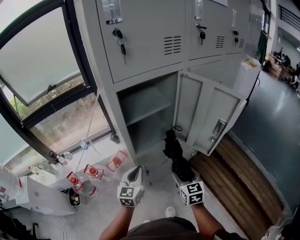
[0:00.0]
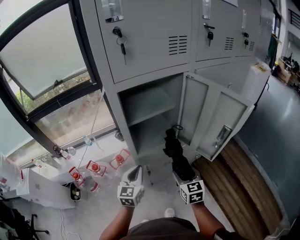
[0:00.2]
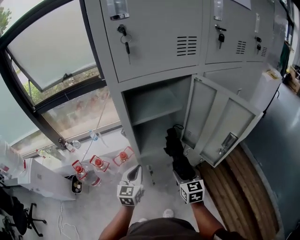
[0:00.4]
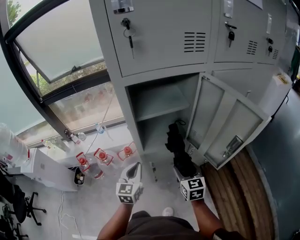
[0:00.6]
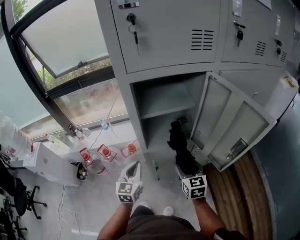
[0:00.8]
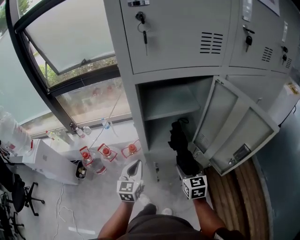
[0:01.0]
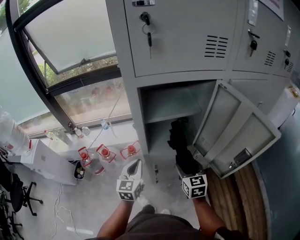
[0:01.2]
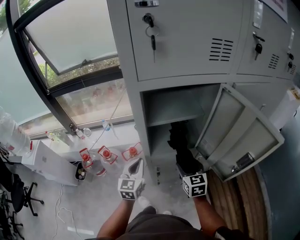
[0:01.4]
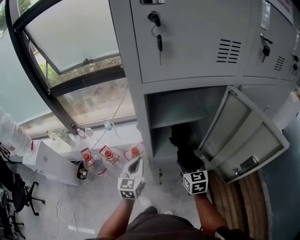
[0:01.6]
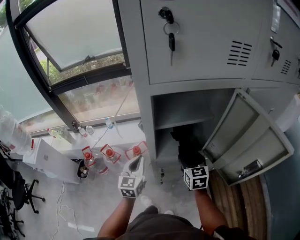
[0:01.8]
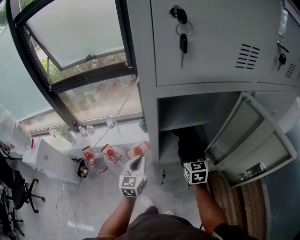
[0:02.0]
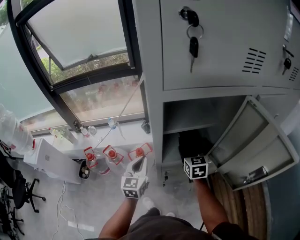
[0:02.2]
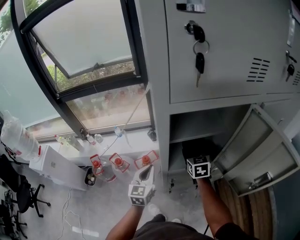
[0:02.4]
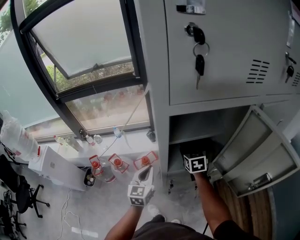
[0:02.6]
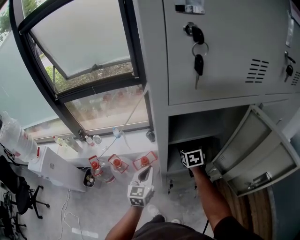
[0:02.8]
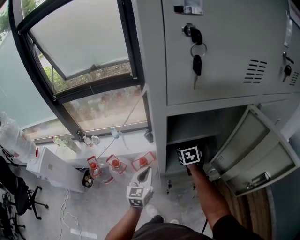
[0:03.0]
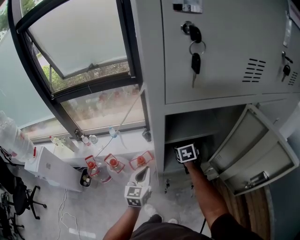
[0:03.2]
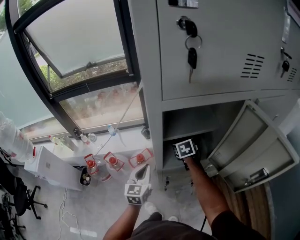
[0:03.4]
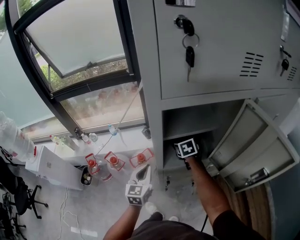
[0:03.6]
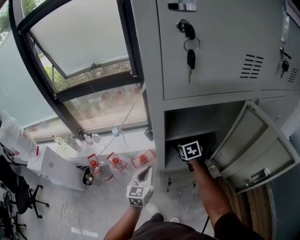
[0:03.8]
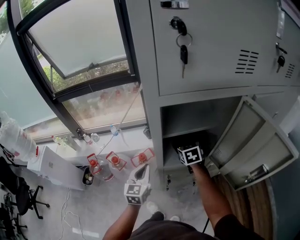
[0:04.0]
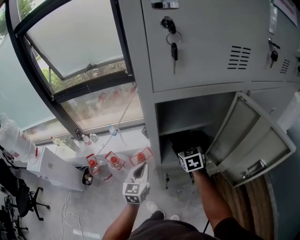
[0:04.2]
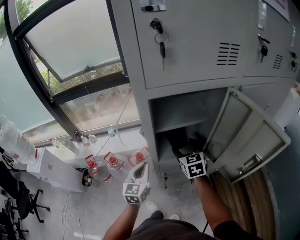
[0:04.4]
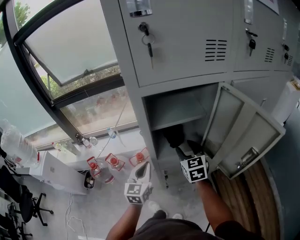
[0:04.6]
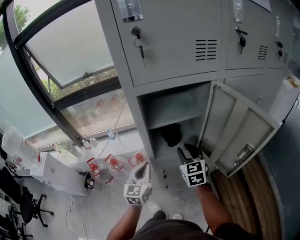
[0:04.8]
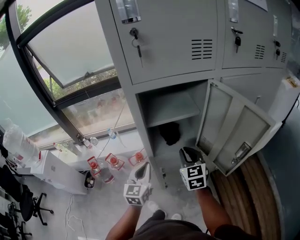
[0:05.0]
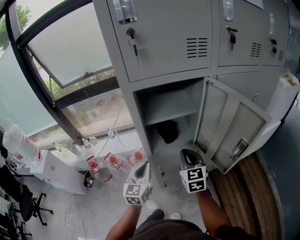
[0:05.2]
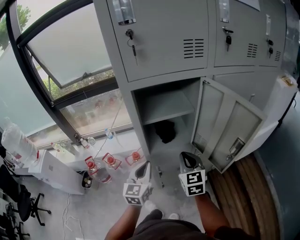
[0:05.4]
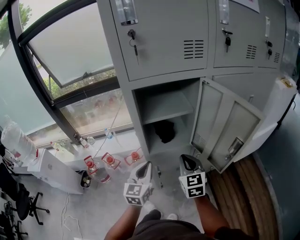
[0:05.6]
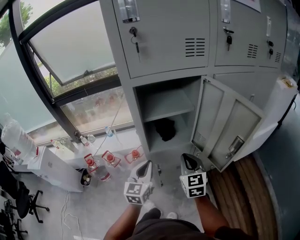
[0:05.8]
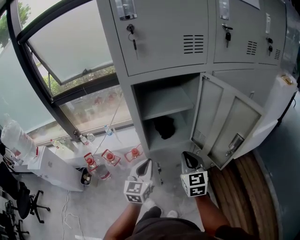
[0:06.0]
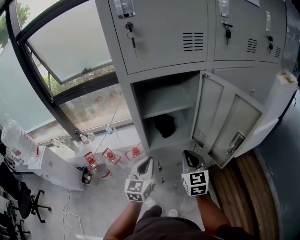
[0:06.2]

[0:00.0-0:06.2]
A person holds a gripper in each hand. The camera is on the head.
0:00.0 to 0:01.6: The left gripper heads forward and to the left, covering approximately 10 cm, and changes its angle by roughly 20 degrees, while the right gripper moves forward, about 15 cm.
0:01.6 to 0:03.2: The right gripper travels forward by approximately 20 cm.
0:03.2 to 0:04.6: The left gripper goes roughly 5 cm backward. Meanwhile the right gripper is displaced backward and upward by about 15 cm.
0:04.6 to 0:06.2: The left gripper shifts approximately 10 cm to the right and backward. The right gripper moves backward and to the right, some 15 cm, and closes.

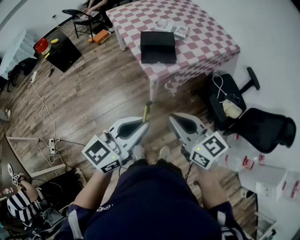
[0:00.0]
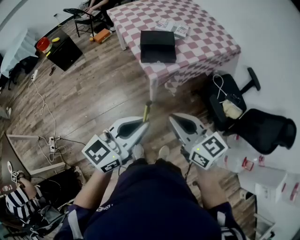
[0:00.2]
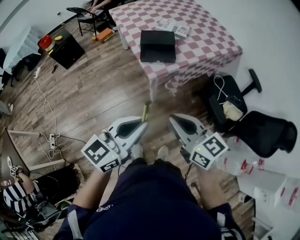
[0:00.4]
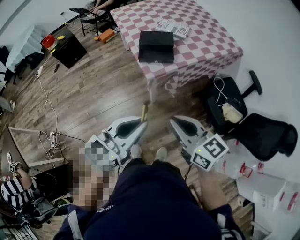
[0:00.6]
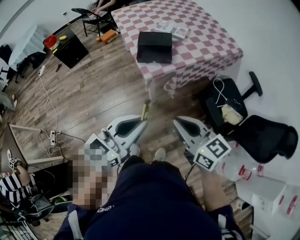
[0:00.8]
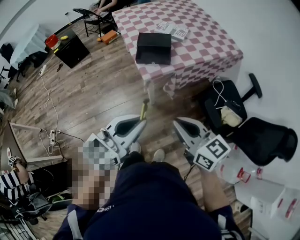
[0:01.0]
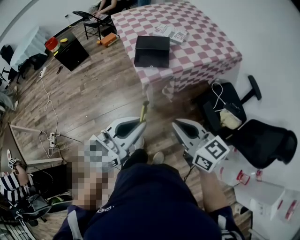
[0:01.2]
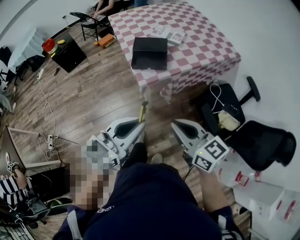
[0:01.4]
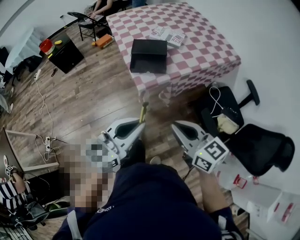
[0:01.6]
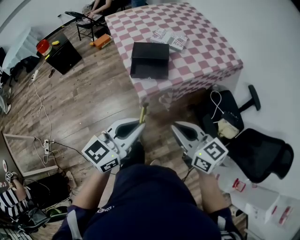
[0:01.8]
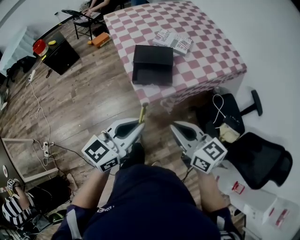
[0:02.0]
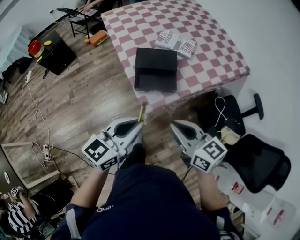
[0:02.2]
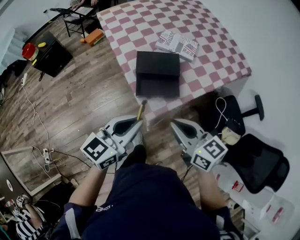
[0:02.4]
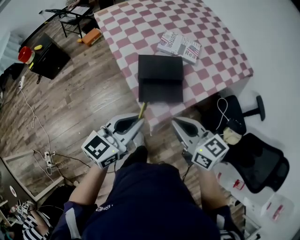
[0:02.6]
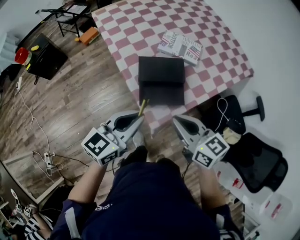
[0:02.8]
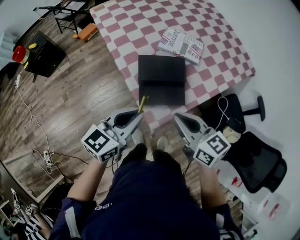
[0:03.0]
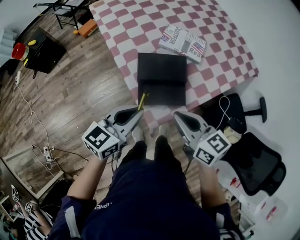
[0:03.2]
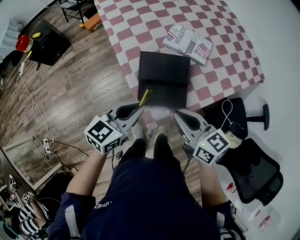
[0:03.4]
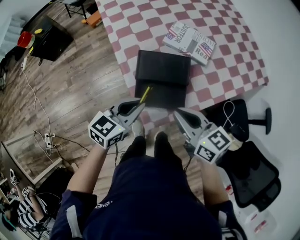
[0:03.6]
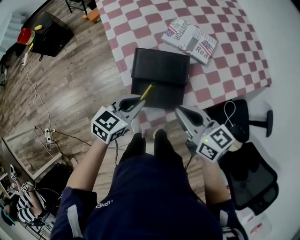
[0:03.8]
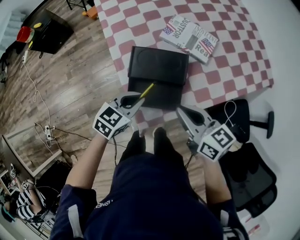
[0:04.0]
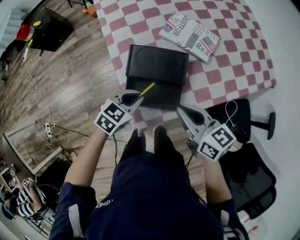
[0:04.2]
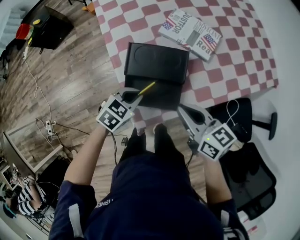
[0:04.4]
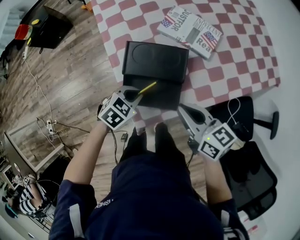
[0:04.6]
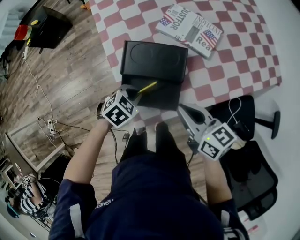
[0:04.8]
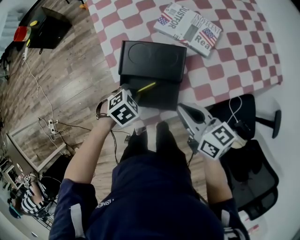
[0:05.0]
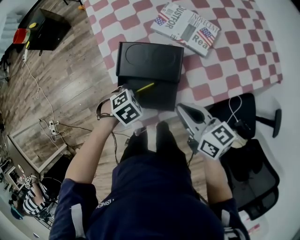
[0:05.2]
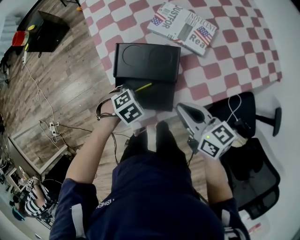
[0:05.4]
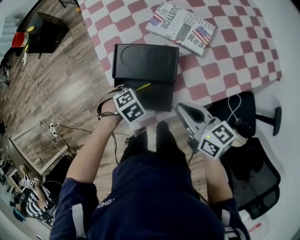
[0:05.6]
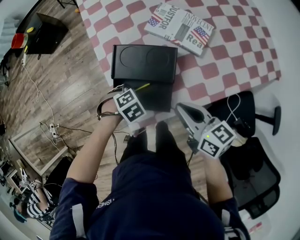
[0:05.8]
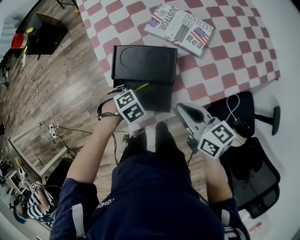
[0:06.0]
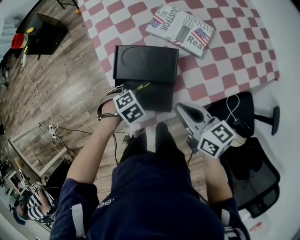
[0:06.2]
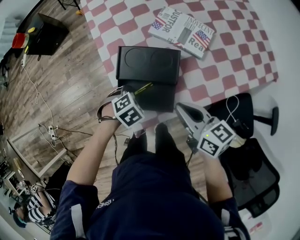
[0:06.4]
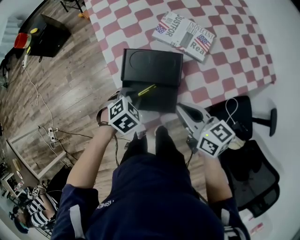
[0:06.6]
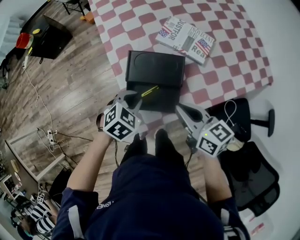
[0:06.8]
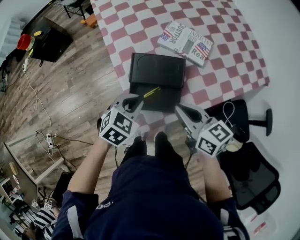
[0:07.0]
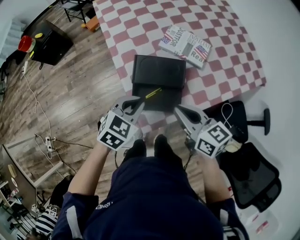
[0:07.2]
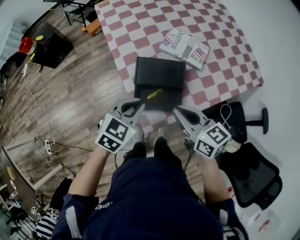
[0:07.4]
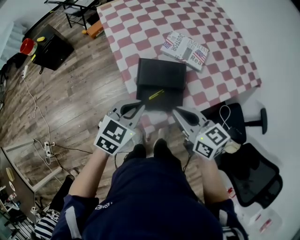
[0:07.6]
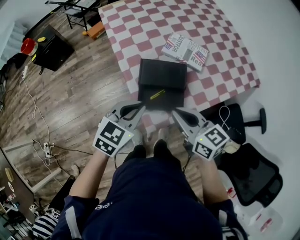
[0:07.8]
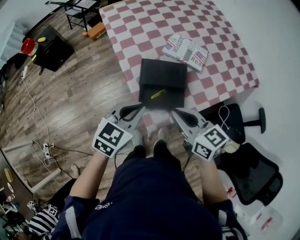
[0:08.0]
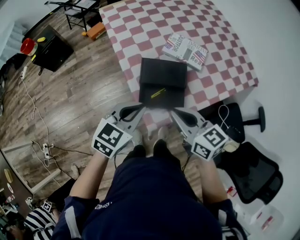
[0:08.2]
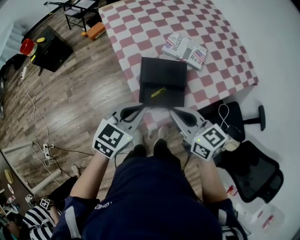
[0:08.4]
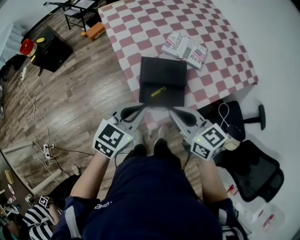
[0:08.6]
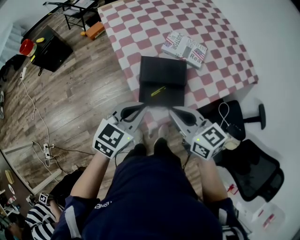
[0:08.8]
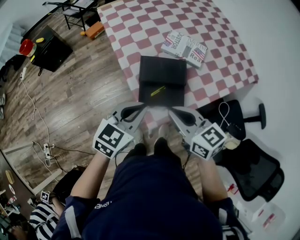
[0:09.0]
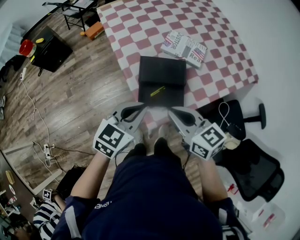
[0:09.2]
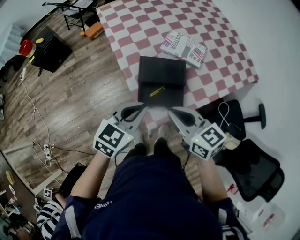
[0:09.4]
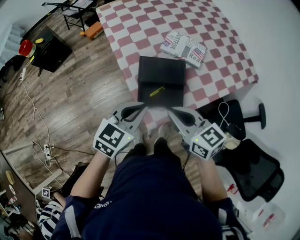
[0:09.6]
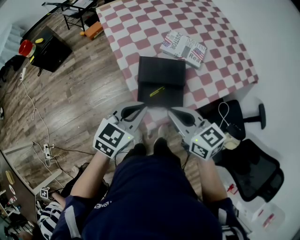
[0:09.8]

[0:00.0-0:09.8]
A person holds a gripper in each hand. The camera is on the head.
0:00.0 to 0:01.4: Both grippers move to the right, approximately 10 cm.
0:01.4 to 0:02.8: The grippers both shift forward by about 35 cm.
0:02.8 to 0:04.2: The right gripper shifts about 15 cm forward, to the right and downward; the left gripper goes some 20 cm downward and forward, and tilts its fingers about 30 degrees downward.
0:04.2 to 0:05.6: The right gripper shifts by roughly 5 cm. The left gripper travels downward by approximately 10 cm, and angles its fingers downward, by roughly 40 degrees.
0:05.6 to 0:07.0: The left gripper shifts approximately 15 cm upward, and angles its fingers upward, by some 40 degrees. The right gripper goes about 5 cm upward.
0:07.0 to 0:08.4: The right gripper heads to the left, upward and backward, covering some 10 cm. Meanwhile the left gripper moves upward and backward, approximately 15 cm, and changes its angle by some 30 degrees.
0:08.4 to 0:09.8: Both grippers stay about where they are.

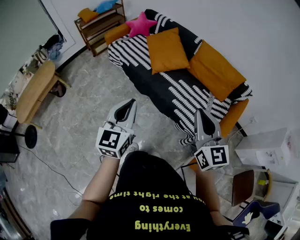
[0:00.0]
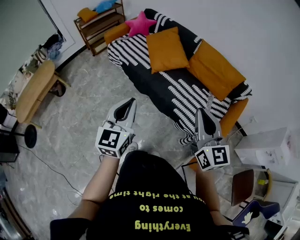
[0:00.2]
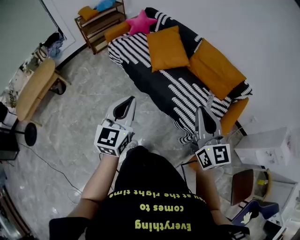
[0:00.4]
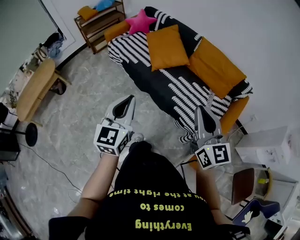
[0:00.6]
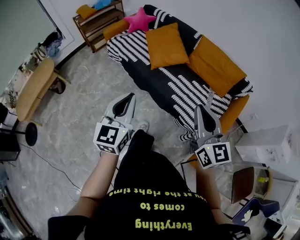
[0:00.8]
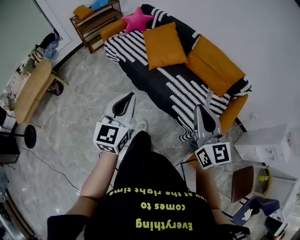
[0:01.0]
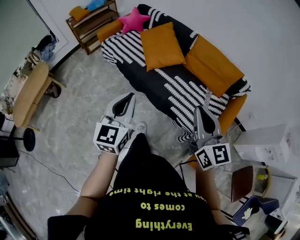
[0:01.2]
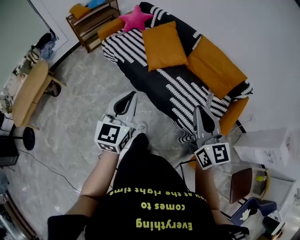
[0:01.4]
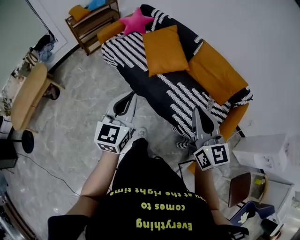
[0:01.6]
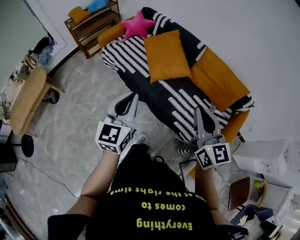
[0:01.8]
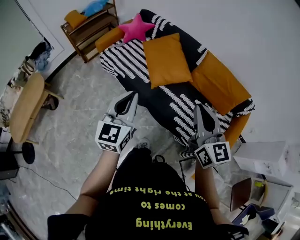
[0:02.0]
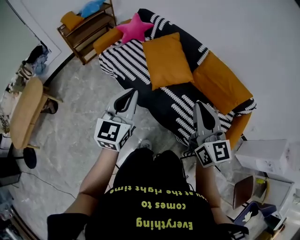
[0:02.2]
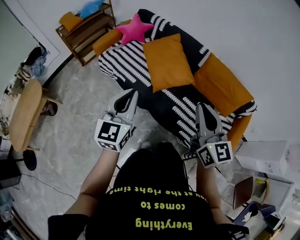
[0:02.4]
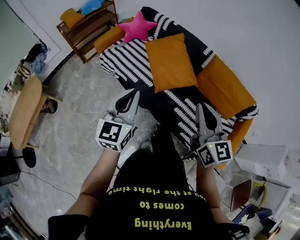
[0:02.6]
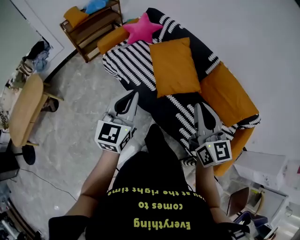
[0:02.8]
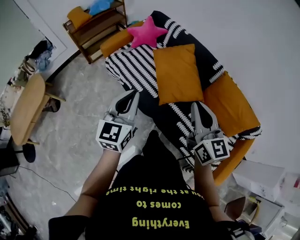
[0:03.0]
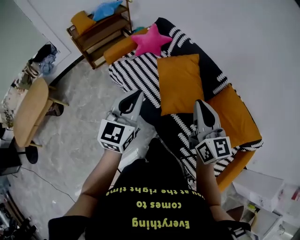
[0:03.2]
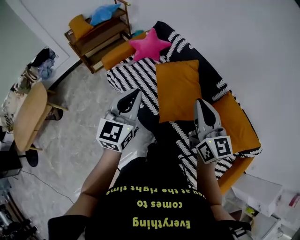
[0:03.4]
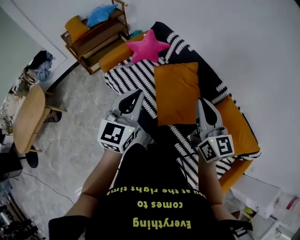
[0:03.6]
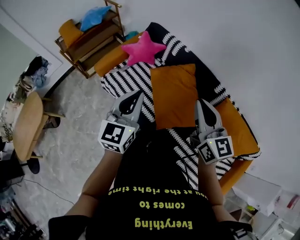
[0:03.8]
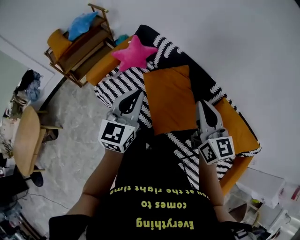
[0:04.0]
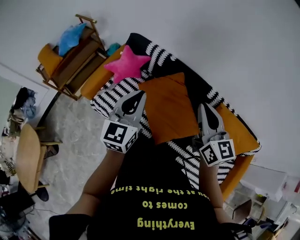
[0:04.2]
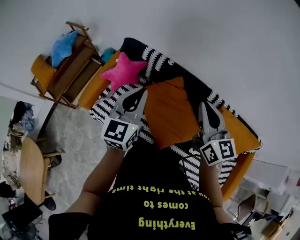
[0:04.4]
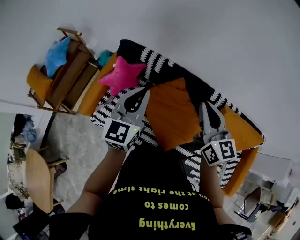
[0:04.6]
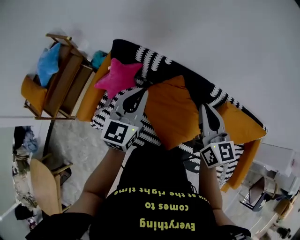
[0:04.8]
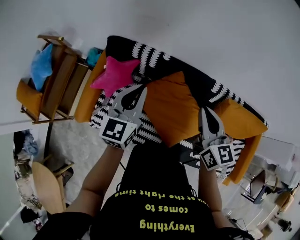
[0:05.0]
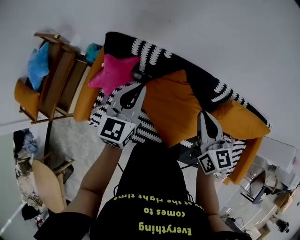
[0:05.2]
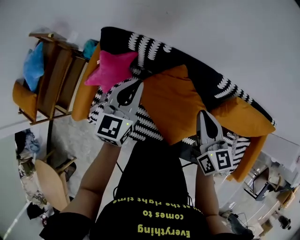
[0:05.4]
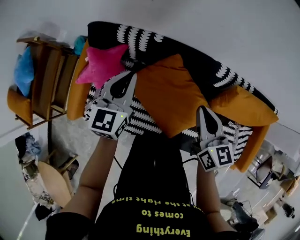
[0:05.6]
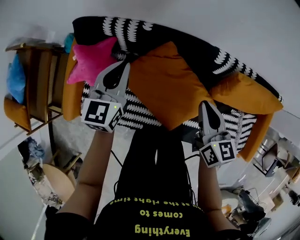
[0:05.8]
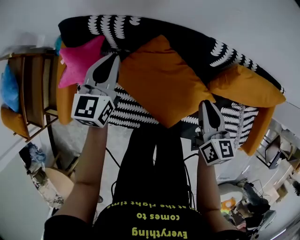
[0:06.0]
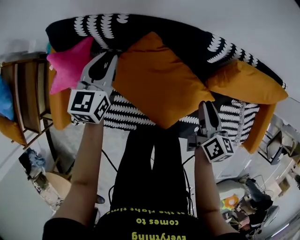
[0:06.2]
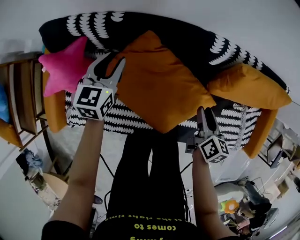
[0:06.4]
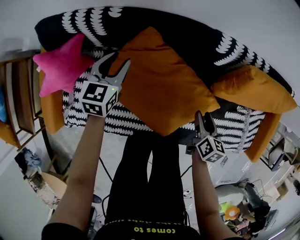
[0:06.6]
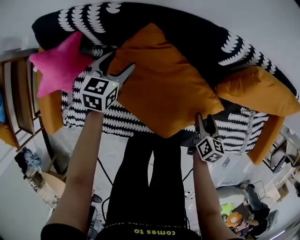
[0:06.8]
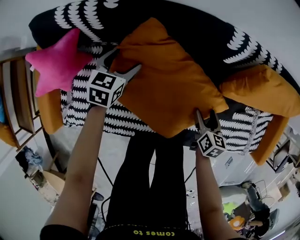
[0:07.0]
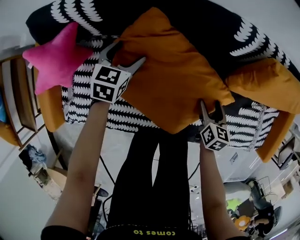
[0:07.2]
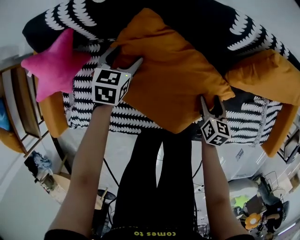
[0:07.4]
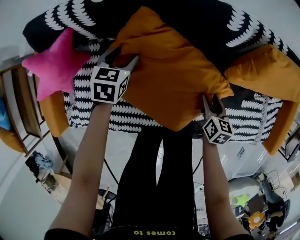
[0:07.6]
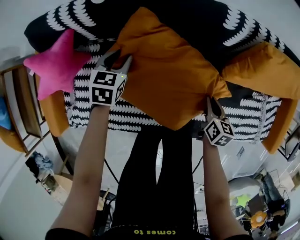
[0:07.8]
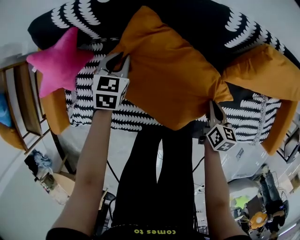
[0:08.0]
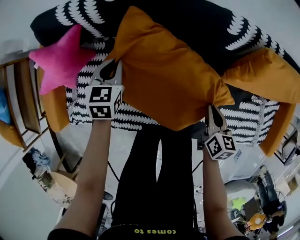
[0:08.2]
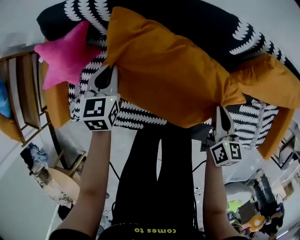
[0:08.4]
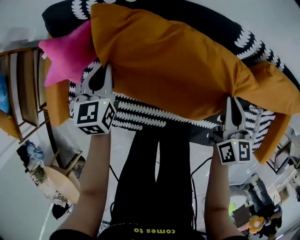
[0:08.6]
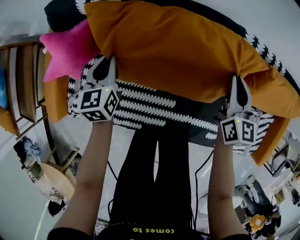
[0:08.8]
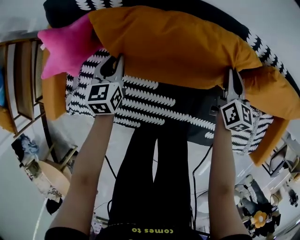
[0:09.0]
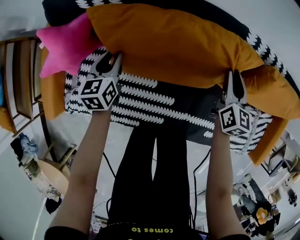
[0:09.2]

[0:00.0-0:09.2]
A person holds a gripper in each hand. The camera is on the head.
0:00.0 to 0:01.6: Both grippers move forward, roughly 10 cm.
0:01.6 to 0:03.0: Both grippers travel together forward, roughly 30 cm.
0:03.0 to 0:04.6: The two grippers travel together, forward, some 50 cm. The left gripper rotates about 20 degrees. Meanwhile the right gripper rotates about 20 degrees.
0:04.6 to 0:06.2: The left gripper goes approximately 35 cm downward and forward, and turns by approximately 20 degrees; the right gripper travels downward and to the right by approximately 35 cm, turns by about 50 degrees, and opens its fingers.
0:06.2 to 0:07.6: The two grippers go about 25 cm downward. The left gripper turns by approximately 30 degrees, and opens.
0:07.6 to 0:09.2: The left gripper travels to the left and upward by approximately 15 cm, swivels approximately 30 degrees, and closes; the right gripper shifts roughly 20 cm upward and forward, turns by about 30 degrees, and closes up.
